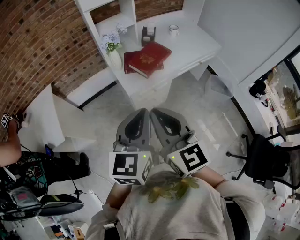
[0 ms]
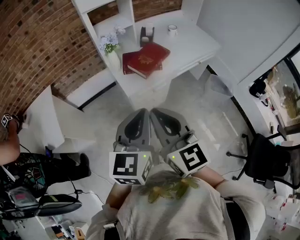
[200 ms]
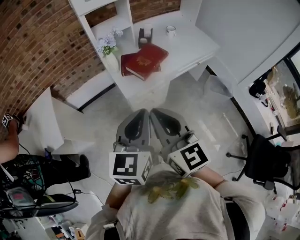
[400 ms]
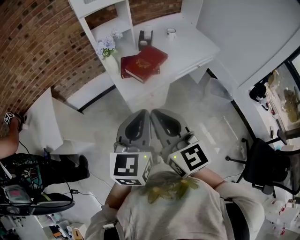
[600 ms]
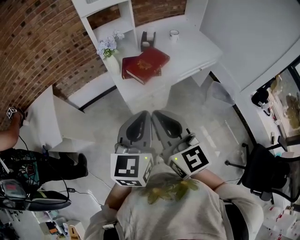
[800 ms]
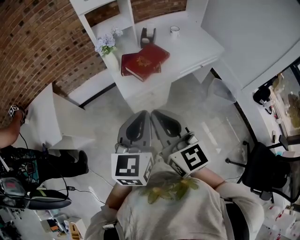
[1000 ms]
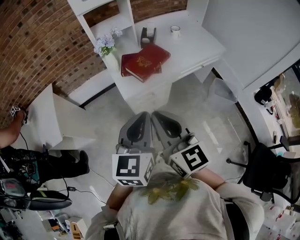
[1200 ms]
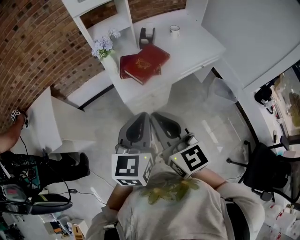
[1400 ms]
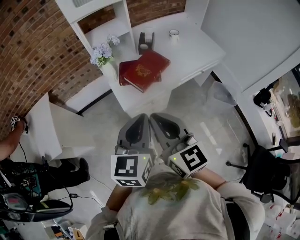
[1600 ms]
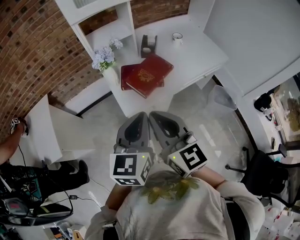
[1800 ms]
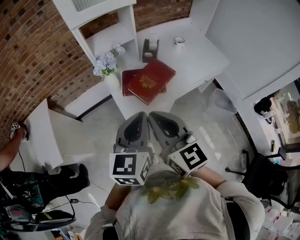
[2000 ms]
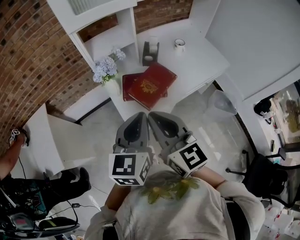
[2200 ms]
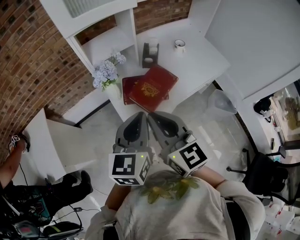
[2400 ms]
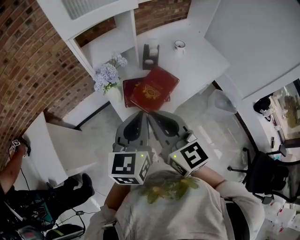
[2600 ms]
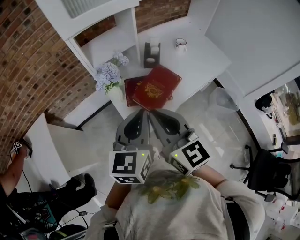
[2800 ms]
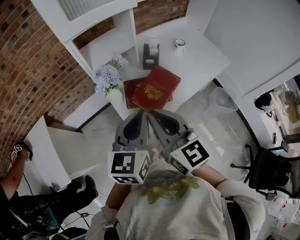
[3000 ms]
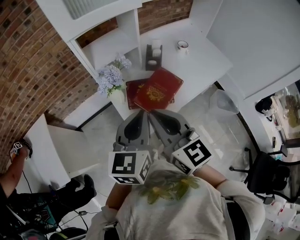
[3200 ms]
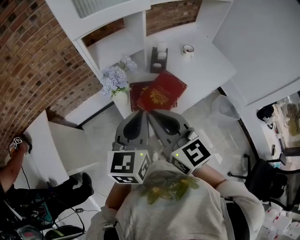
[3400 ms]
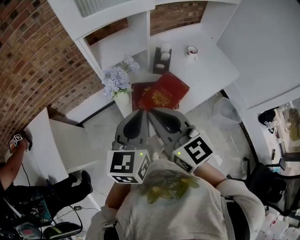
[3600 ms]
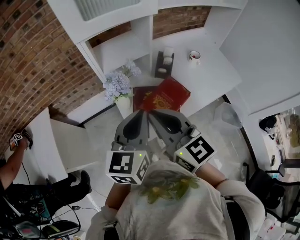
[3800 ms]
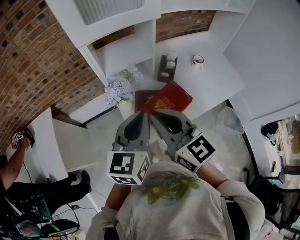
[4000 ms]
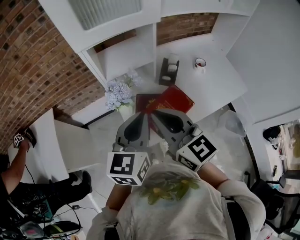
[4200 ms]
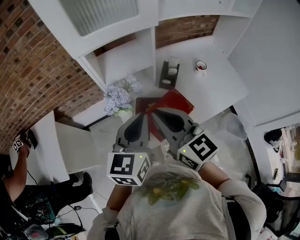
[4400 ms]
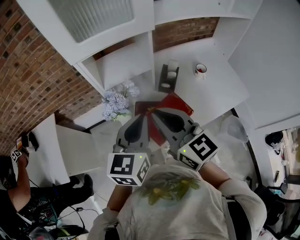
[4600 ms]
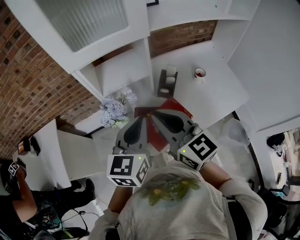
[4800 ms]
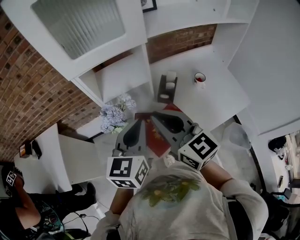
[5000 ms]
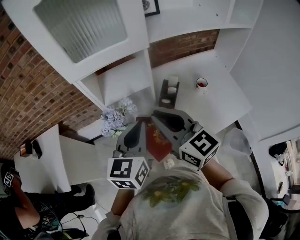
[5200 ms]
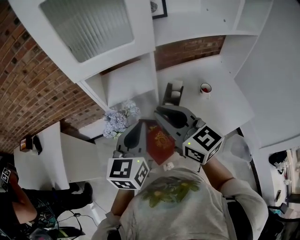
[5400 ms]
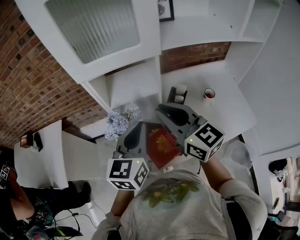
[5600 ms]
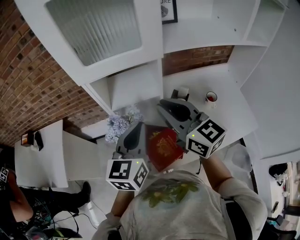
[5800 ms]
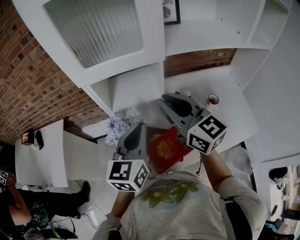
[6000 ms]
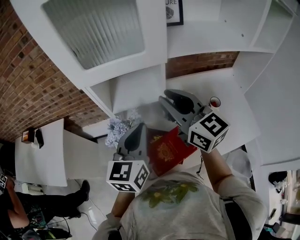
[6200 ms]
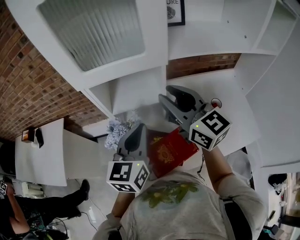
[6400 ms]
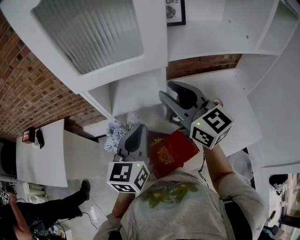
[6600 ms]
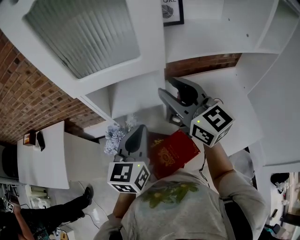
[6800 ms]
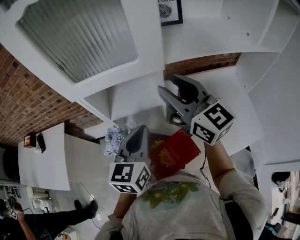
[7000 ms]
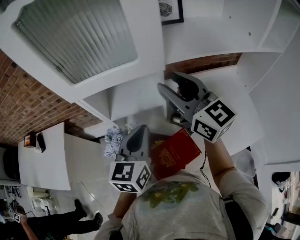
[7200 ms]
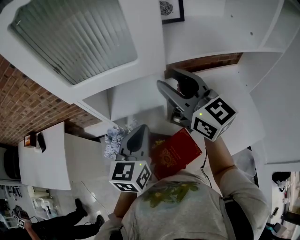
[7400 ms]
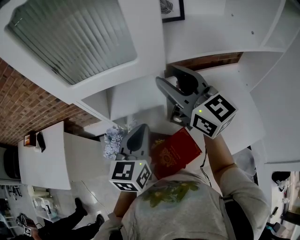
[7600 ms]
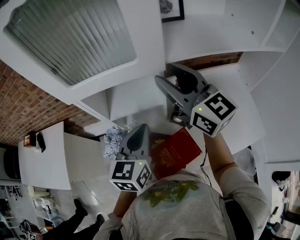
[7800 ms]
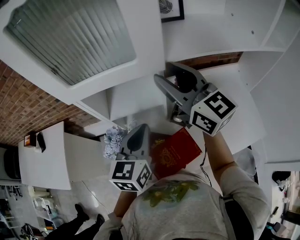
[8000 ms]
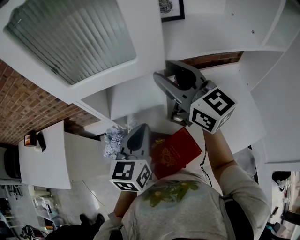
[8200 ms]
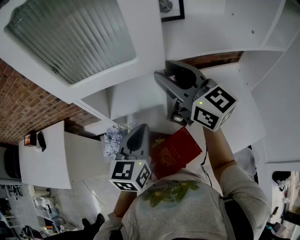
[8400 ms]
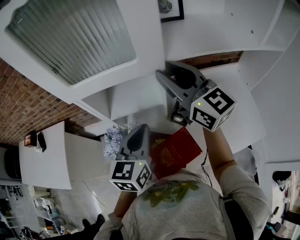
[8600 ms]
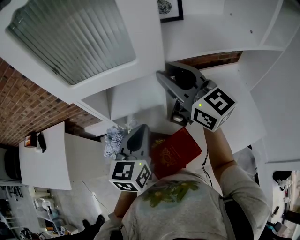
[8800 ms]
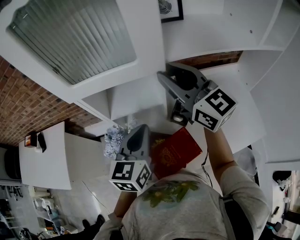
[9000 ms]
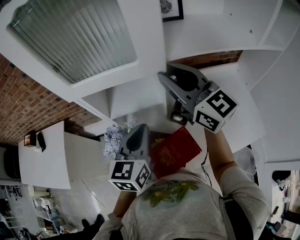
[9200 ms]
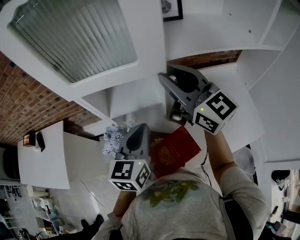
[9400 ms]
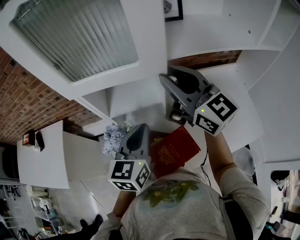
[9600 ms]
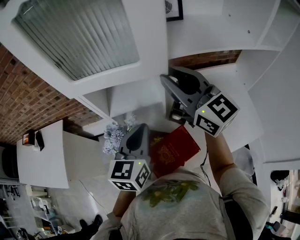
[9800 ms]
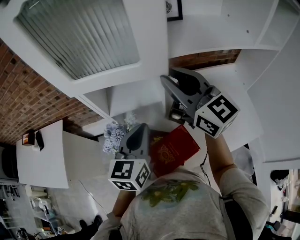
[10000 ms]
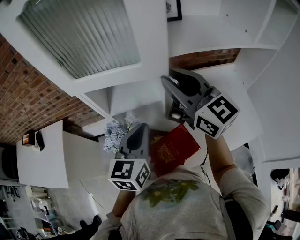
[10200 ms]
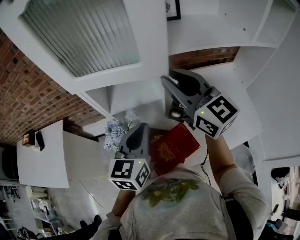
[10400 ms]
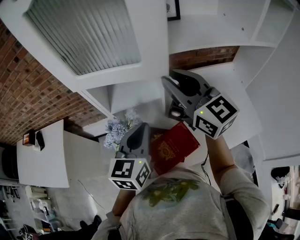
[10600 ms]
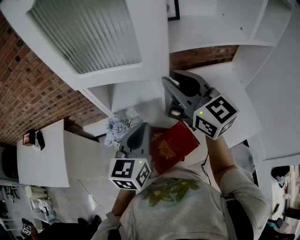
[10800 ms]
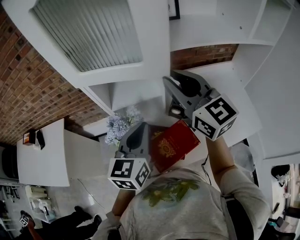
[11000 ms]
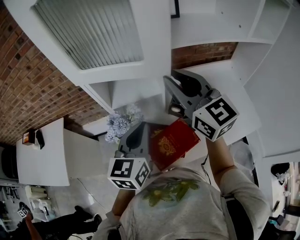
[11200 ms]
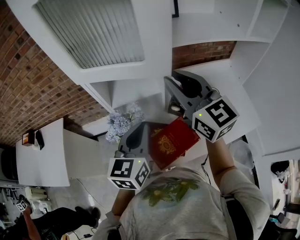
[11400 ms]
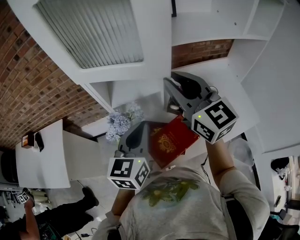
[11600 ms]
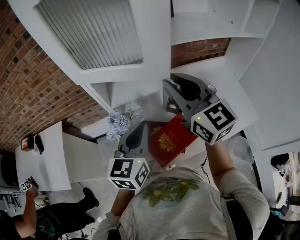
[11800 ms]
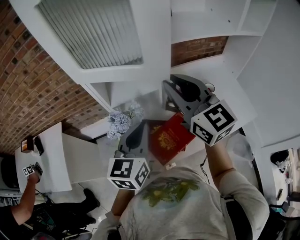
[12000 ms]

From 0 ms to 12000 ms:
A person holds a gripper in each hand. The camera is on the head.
From 0 ms to 1600 ms: The grippers both shift forward and to the right by approximately 10 cm.
From 1600 ms to 3000 ms: Both grippers travel together forward, some 20 cm.
From 3000 ms to 4400 ms: Both grippers move forward, some 10 cm.
From 4400 ms to 6000 ms: The right gripper heads forward and to the right, covering roughly 15 cm, while the left gripper goes some 10 cm forward.
From 6000 ms to 7600 ms: The right gripper heads forward, covering roughly 10 cm, and opens its fingers. The left gripper moves forward, some 5 cm.
From 7600 ms to 9000 ms: The two grippers keep their place.
From 9000 ms to 10400 ms: The grippers move only a little.
From 10400 ms to 12000 ms: Both grippers move backward, some 5 cm.

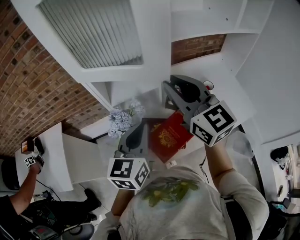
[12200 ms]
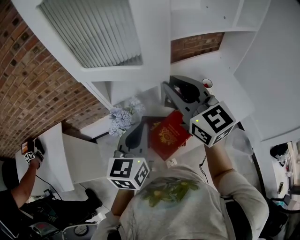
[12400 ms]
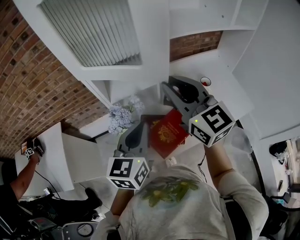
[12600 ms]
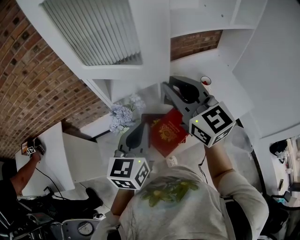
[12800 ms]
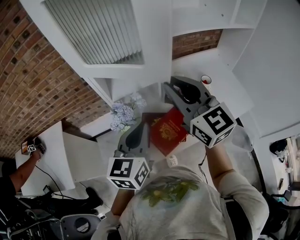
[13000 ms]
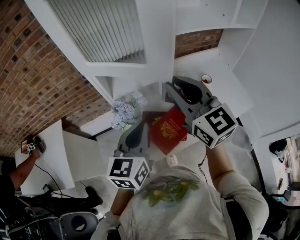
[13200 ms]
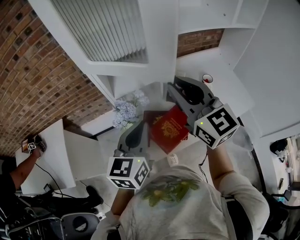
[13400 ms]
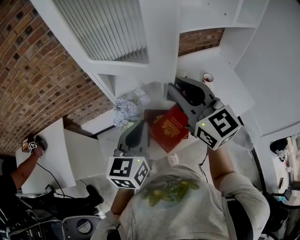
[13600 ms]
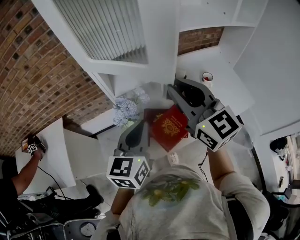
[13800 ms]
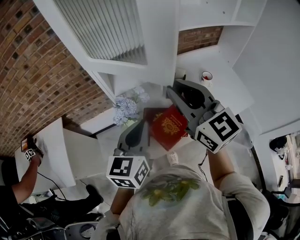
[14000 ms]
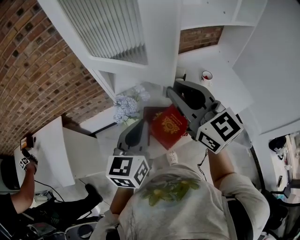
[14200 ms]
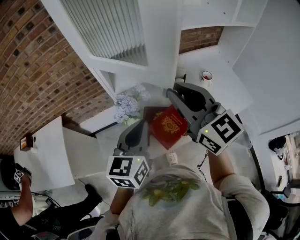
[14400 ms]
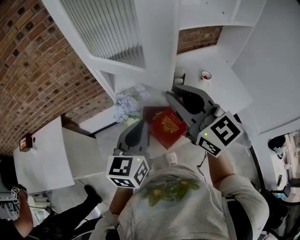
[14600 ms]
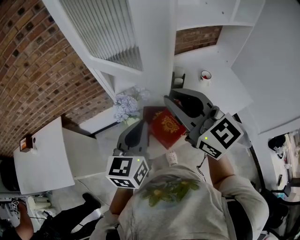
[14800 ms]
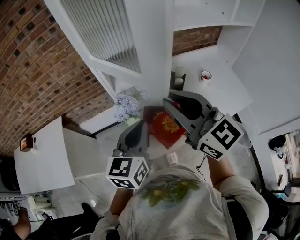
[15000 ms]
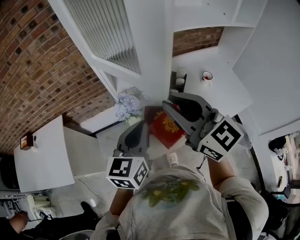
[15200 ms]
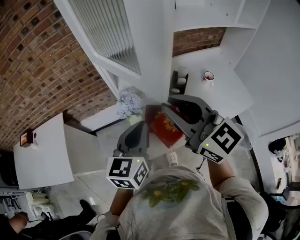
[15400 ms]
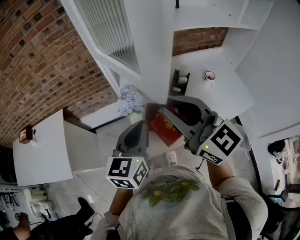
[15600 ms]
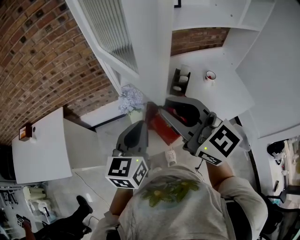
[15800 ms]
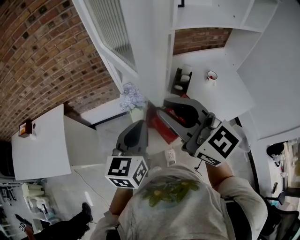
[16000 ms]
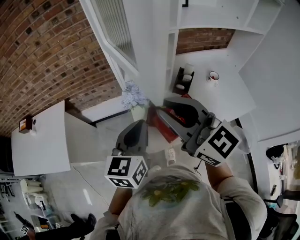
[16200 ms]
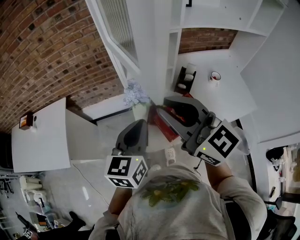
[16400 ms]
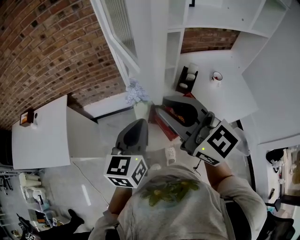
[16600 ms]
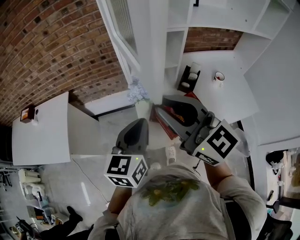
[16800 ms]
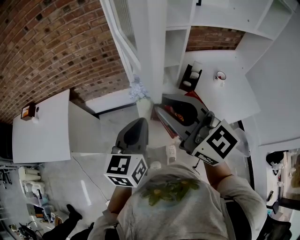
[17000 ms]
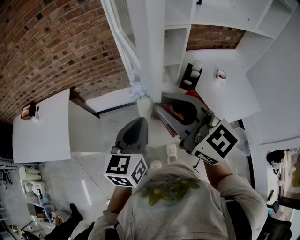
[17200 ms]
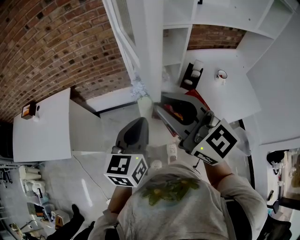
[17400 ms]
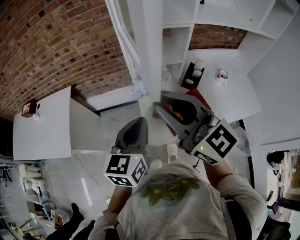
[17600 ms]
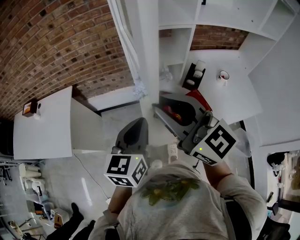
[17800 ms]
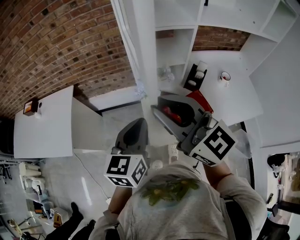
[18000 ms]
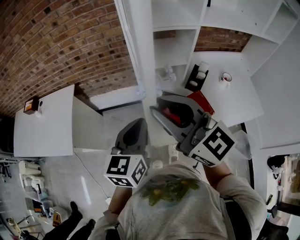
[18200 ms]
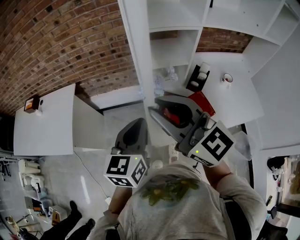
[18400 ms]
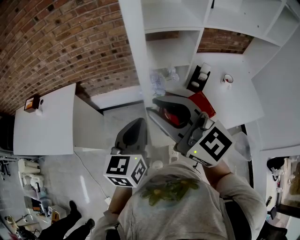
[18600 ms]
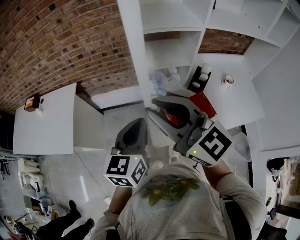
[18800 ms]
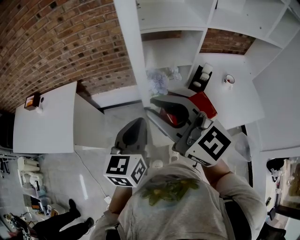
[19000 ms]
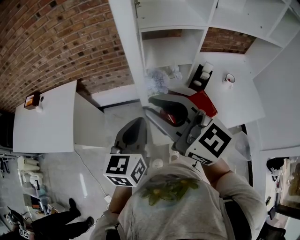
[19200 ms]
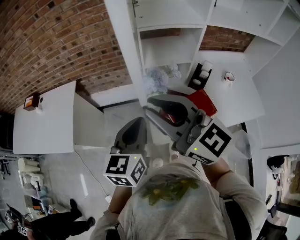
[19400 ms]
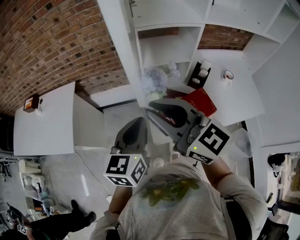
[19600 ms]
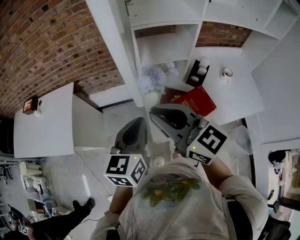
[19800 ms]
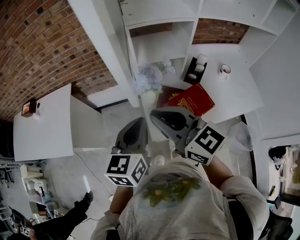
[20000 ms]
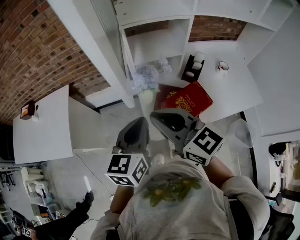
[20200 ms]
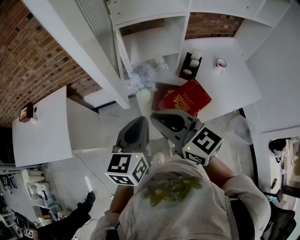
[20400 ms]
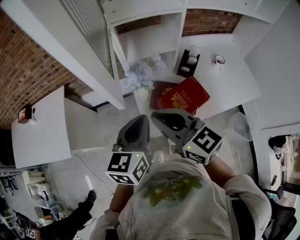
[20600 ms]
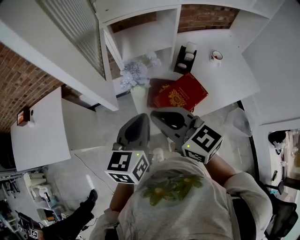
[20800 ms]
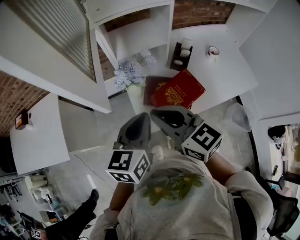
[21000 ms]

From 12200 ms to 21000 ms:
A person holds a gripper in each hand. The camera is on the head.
From 12200 ms to 13600 ms: The right gripper shifts by about 5 cm.
From 13600 ms to 15200 ms: The right gripper goes about 10 cm backward and to the left.
From 15200 ms to 16600 ms: The left gripper moves roughly 5 cm. Meanwhile the right gripper heads to the left, covering about 5 cm.
From 16600 ms to 18000 ms: There are only small adjustments of the grippers.
From 18000 ms to 19600 ms: The grippers stay close to where they were, moving slightly.
From 19600 ms to 21000 ms: The left gripper goes some 10 cm to the right; the right gripper heads downward and to the right, covering some 10 cm.

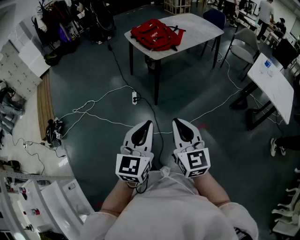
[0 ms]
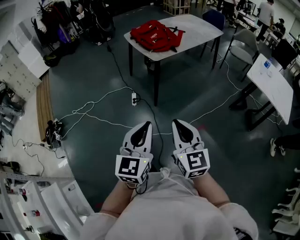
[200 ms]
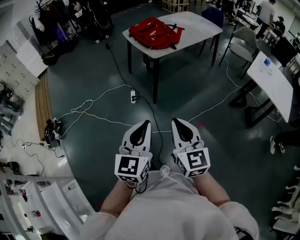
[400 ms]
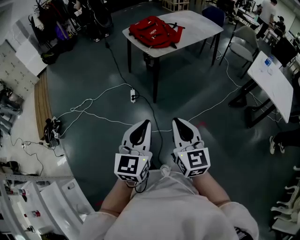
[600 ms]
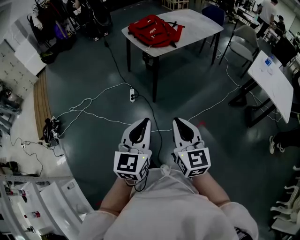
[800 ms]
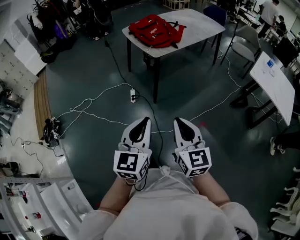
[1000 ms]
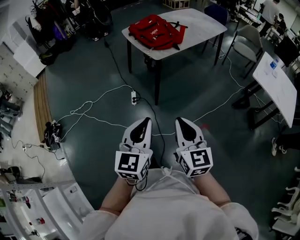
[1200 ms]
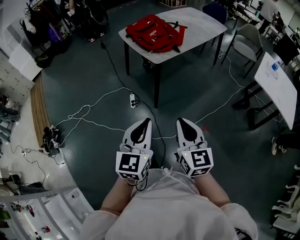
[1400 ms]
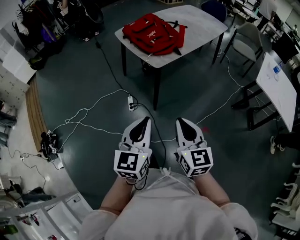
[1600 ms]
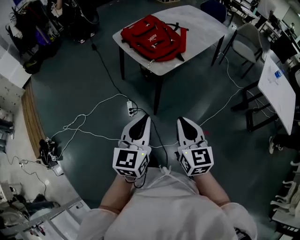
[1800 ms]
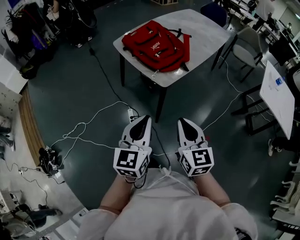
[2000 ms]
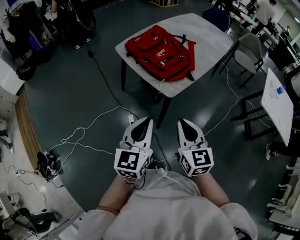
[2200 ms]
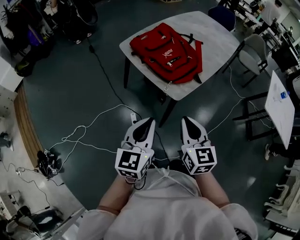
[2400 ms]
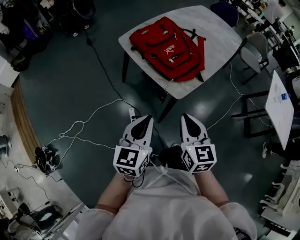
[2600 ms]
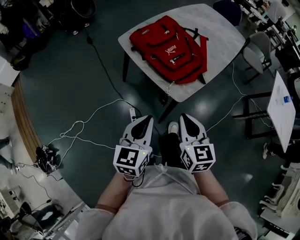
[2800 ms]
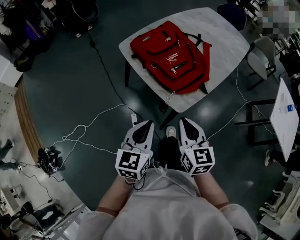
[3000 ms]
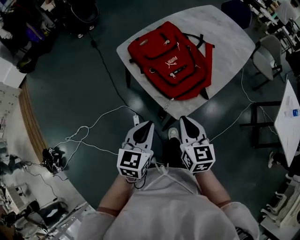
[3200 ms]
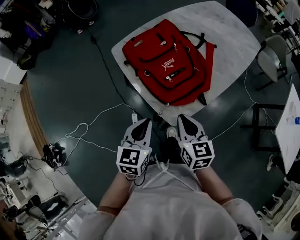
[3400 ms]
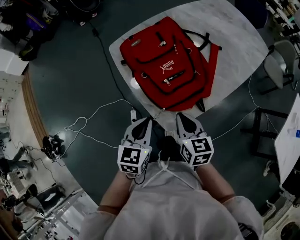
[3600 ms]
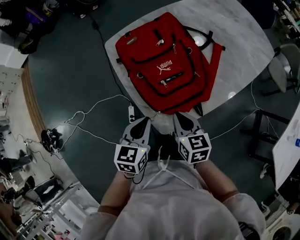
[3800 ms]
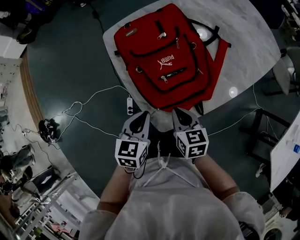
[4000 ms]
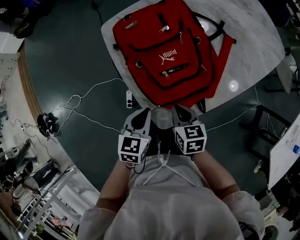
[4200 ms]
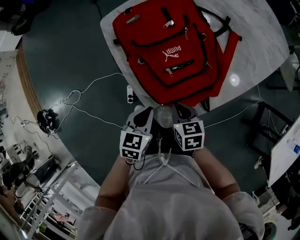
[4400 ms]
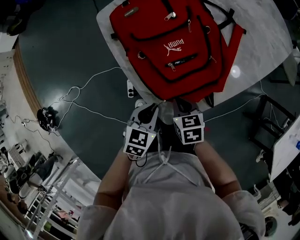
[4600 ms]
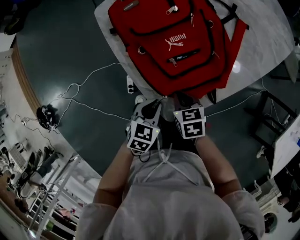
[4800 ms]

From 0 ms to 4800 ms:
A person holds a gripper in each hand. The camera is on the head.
From 0 ms to 1600 ms: Both grippers move forward, some 20 cm.
From 1600 ms to 3200 ms: The two grippers travel together, forward, about 40 cm.
From 3200 ms to 4800 ms: The left gripper shifts roughly 25 cm downward, to the right and forward, and rotates approximately 30 degrees; the right gripper heads downward and forward, covering some 25 cm, and angles its fingers downward, by about 30 degrees.
